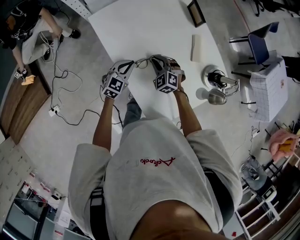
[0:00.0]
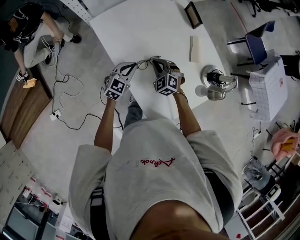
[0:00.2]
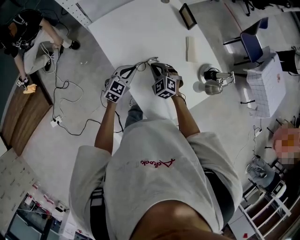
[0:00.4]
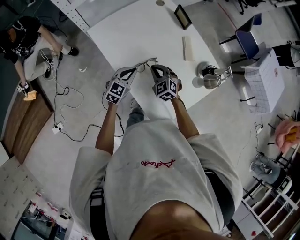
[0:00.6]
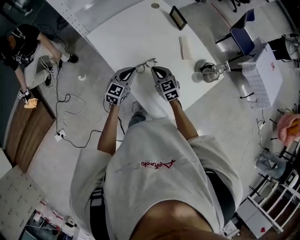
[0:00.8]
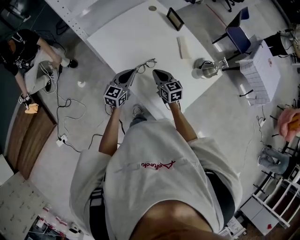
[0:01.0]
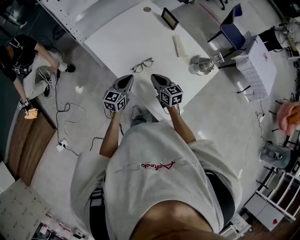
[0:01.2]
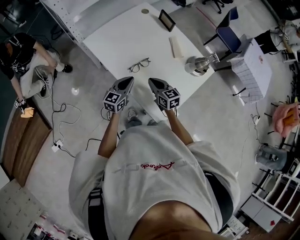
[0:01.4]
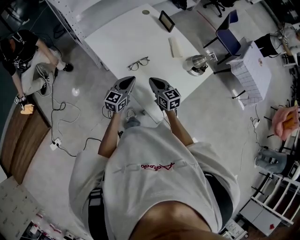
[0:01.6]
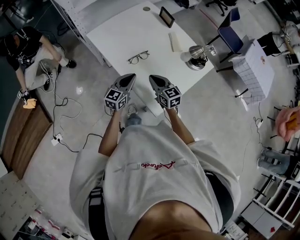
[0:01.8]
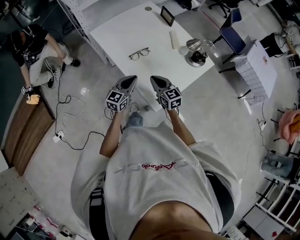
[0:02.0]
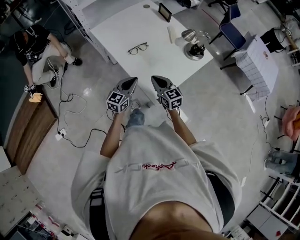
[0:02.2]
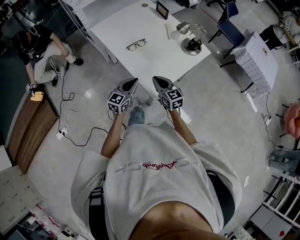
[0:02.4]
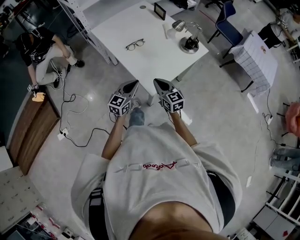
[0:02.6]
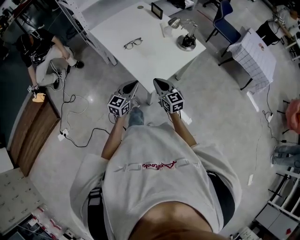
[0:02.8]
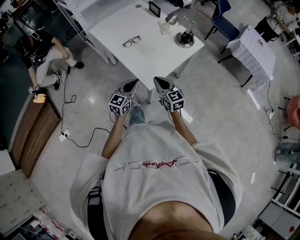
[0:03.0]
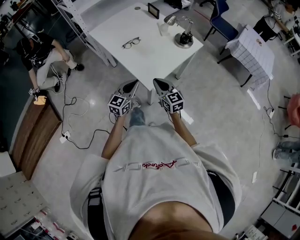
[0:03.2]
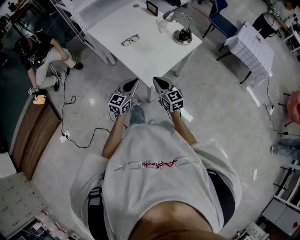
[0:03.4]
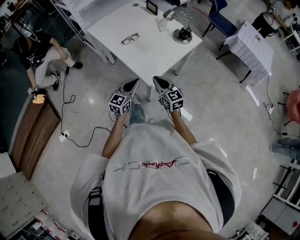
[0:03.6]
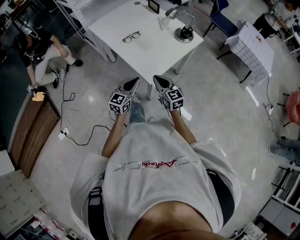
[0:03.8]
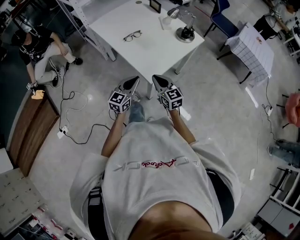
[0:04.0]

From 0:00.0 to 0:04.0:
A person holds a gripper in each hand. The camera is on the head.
From 0:00.0 to 0:01.4: Both grippers travel together backward and upward, roughly 10 cm. The right gripper rolls clockwise, seen from behind, by some 50 degrees; the left gripper changes its angle by some 30 degrees.
From 0:01.4 to 0:02.6: Both grippers move backward, some 20 cm.
From 0:02.6 to 0:04.0: The grippers both shift backward by roughly 5 cm.

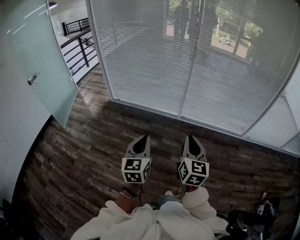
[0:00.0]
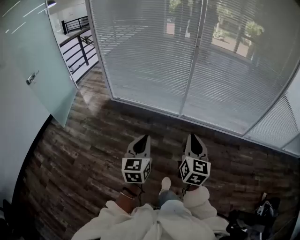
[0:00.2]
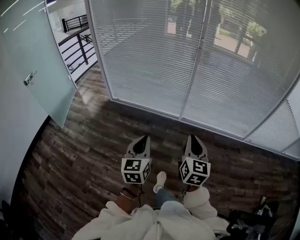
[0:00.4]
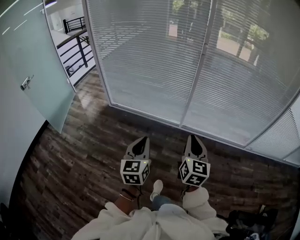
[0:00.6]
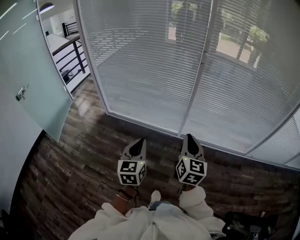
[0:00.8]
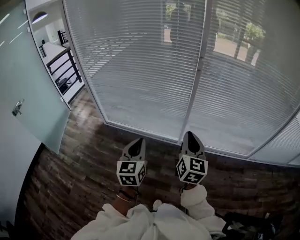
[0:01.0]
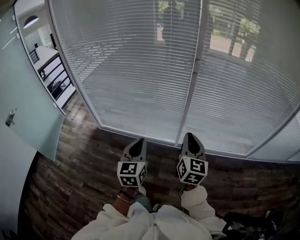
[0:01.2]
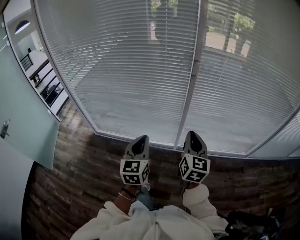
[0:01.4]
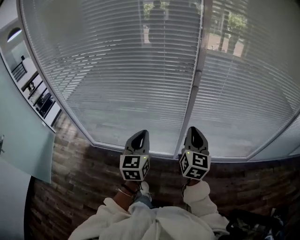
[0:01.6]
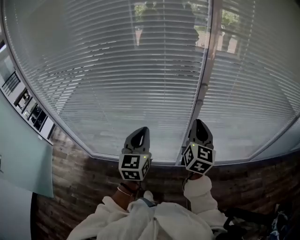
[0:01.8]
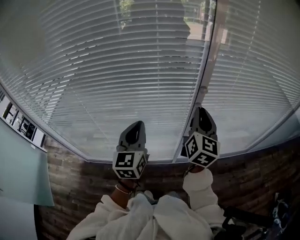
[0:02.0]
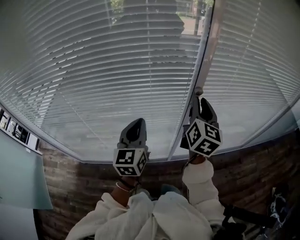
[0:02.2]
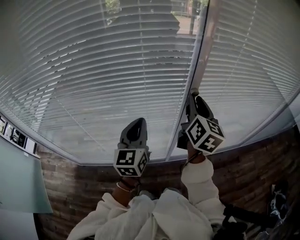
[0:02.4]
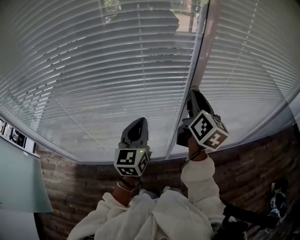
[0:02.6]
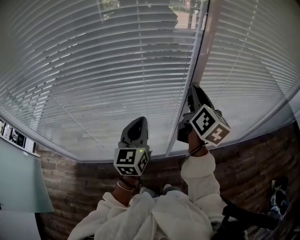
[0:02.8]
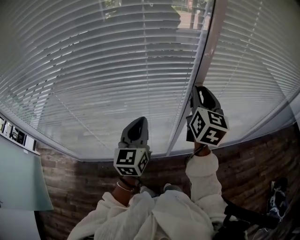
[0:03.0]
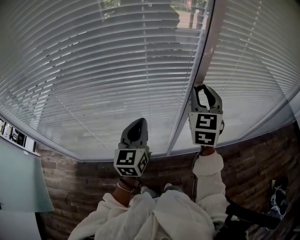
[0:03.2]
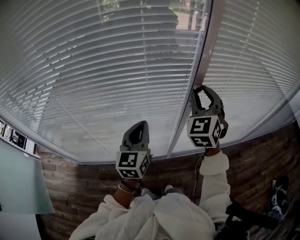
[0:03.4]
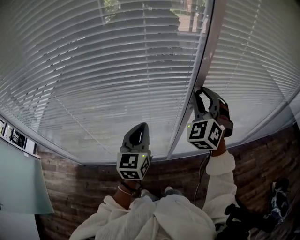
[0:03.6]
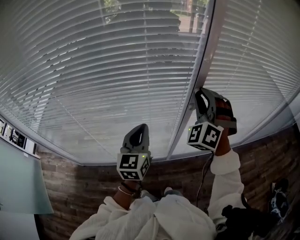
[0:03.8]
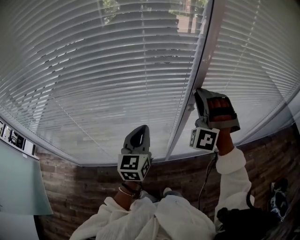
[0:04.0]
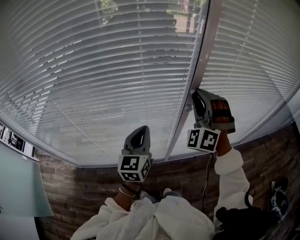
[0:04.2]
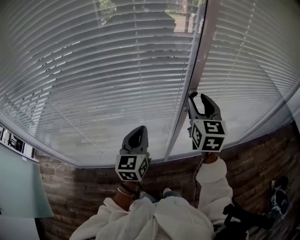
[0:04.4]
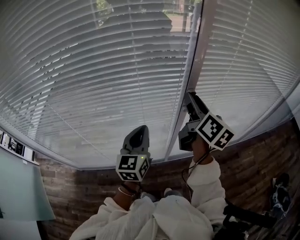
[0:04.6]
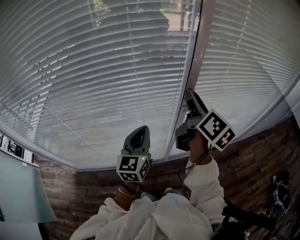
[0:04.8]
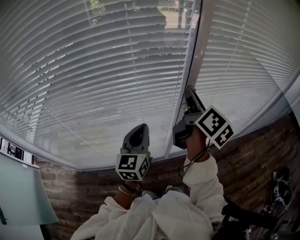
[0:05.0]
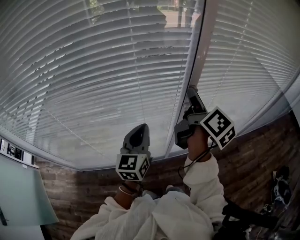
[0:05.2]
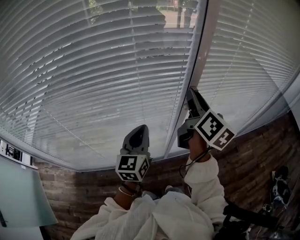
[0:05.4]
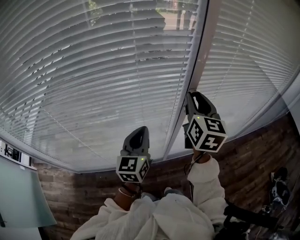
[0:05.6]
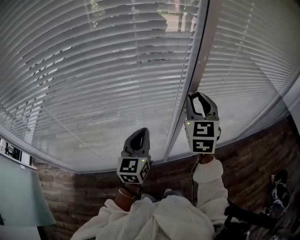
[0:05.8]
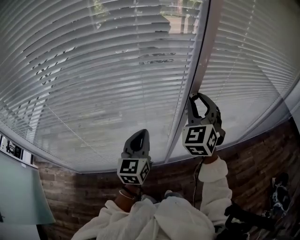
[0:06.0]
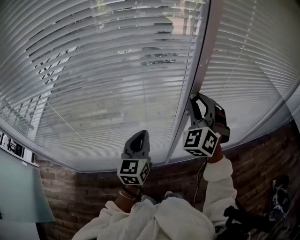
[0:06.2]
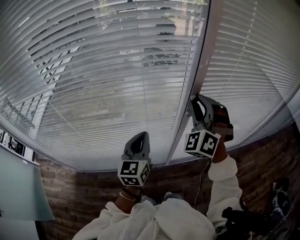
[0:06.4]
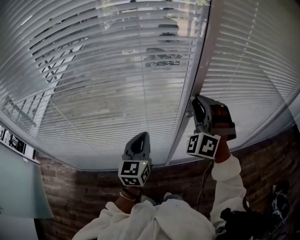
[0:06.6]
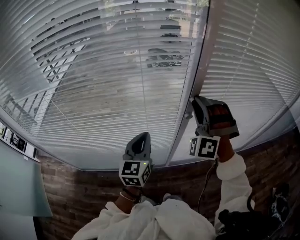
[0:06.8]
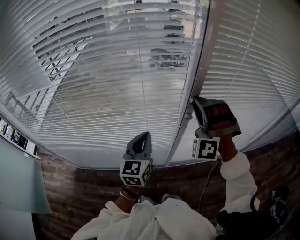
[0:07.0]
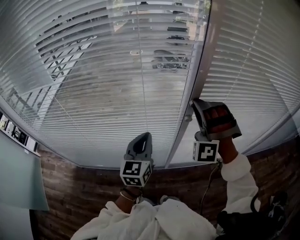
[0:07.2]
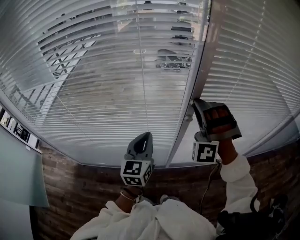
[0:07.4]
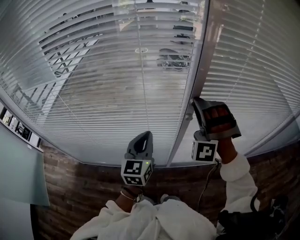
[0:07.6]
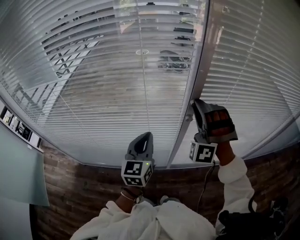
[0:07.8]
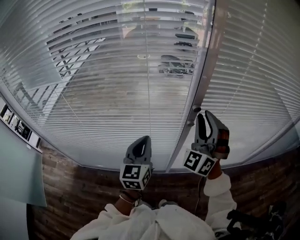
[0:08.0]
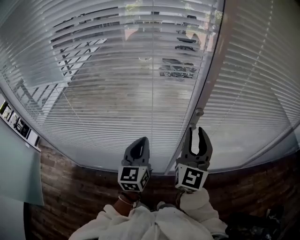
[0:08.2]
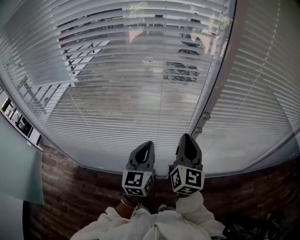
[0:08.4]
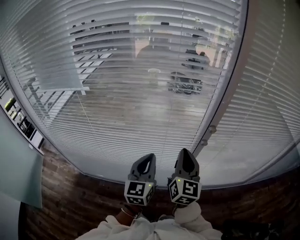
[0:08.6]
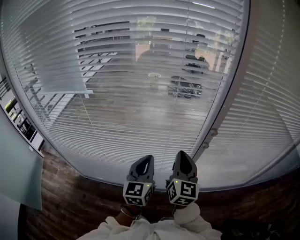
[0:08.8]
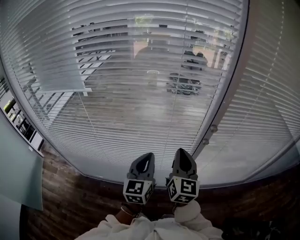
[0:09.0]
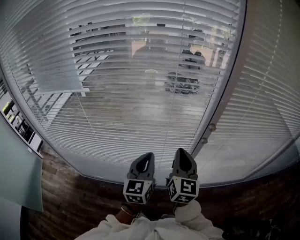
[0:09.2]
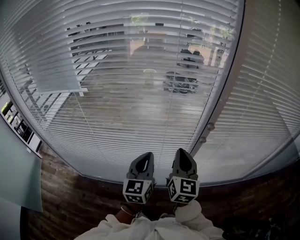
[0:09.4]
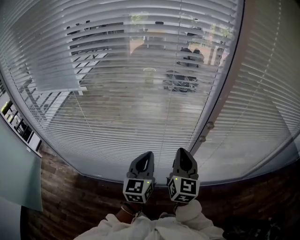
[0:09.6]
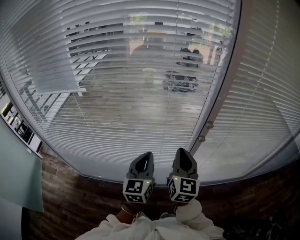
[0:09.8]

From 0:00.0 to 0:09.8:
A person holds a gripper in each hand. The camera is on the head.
From 0:00.0 to 0:01.4: Both grippers are carried forward, about 50 cm.
From 0:01.4 to 0:02.8: Both grippers move forward, approximately 35 cm. The right gripper swivels some 30 degrees, and opens up.
From 0:02.8 to 0:04.2: The right gripper twists roughly 110 degrees counterclockwise, seen from behind.
From 0:04.2 to 0:05.6: The right gripper rotates around the line of its fingers by approximately 90 degrees, clockwise from behind.
From 0:05.6 to 0:07.0: The right gripper twists approximately 110 degrees counterclockwise, seen from behind.
From 0:07.0 to 0:08.4: The right gripper heads backward and to the left, covering roughly 10 cm, rolls clockwise, seen from behind, by some 110 degrees, and closes up.
From 0:08.4 to 0:09.8: The right gripper travels downward by approximately 5 cm, while the left gripper ends up some 5 cm from where it was.

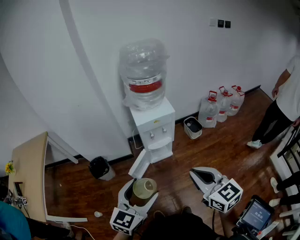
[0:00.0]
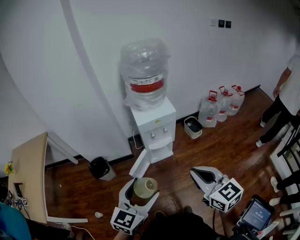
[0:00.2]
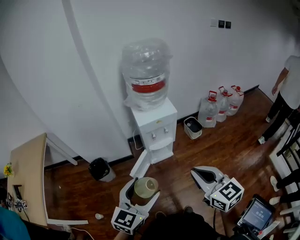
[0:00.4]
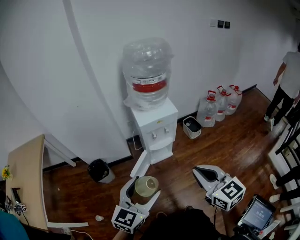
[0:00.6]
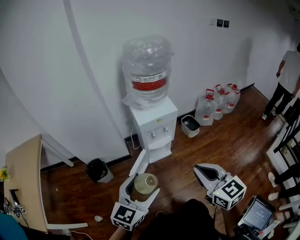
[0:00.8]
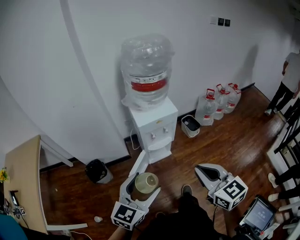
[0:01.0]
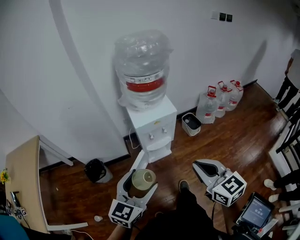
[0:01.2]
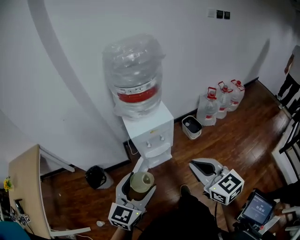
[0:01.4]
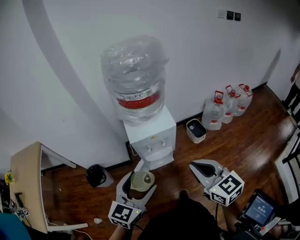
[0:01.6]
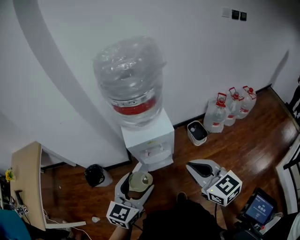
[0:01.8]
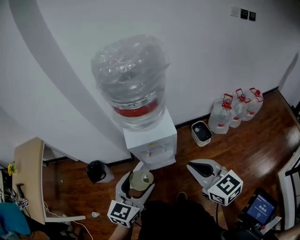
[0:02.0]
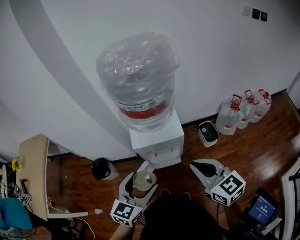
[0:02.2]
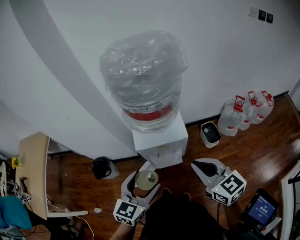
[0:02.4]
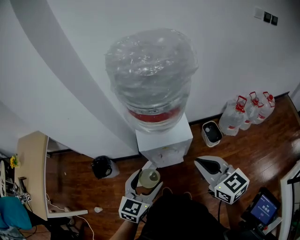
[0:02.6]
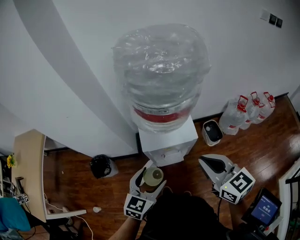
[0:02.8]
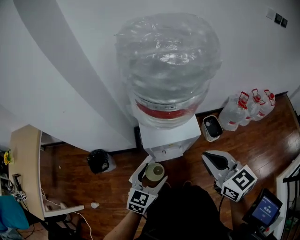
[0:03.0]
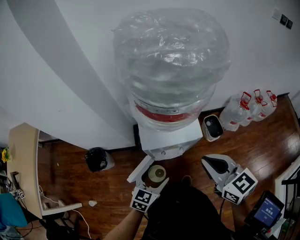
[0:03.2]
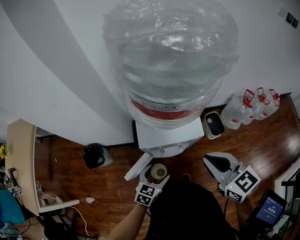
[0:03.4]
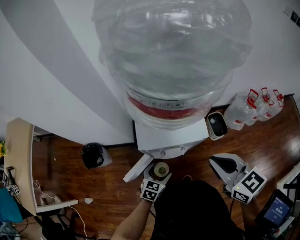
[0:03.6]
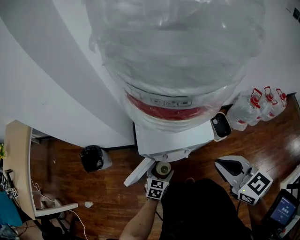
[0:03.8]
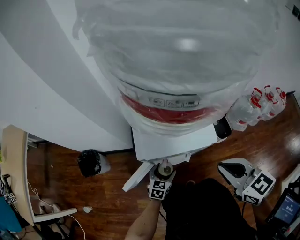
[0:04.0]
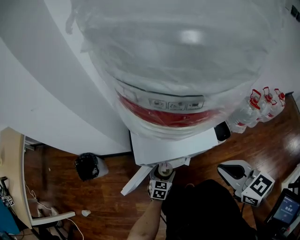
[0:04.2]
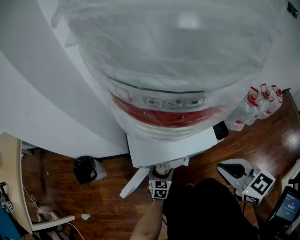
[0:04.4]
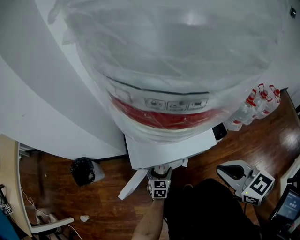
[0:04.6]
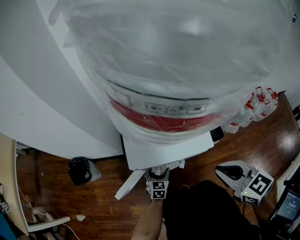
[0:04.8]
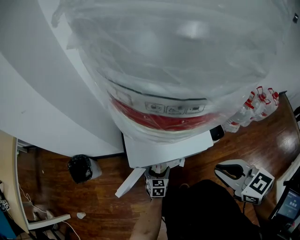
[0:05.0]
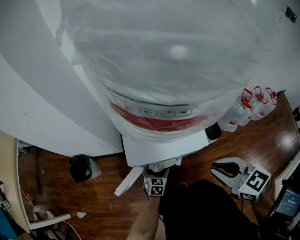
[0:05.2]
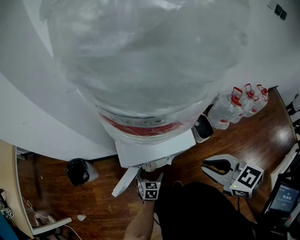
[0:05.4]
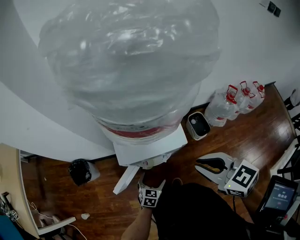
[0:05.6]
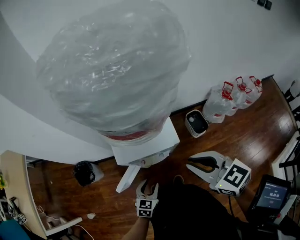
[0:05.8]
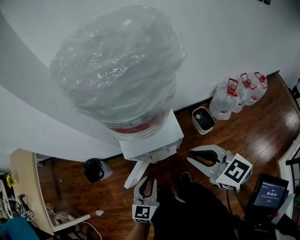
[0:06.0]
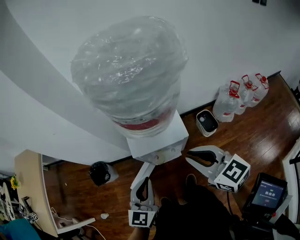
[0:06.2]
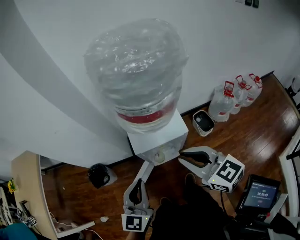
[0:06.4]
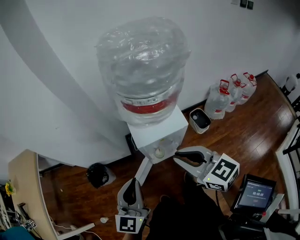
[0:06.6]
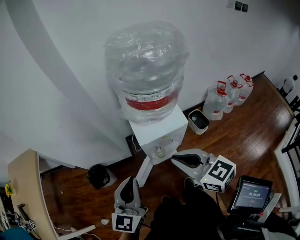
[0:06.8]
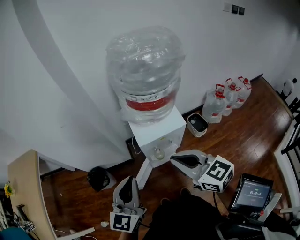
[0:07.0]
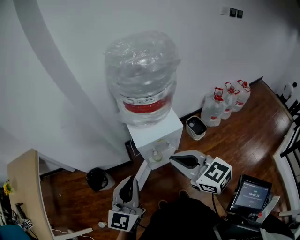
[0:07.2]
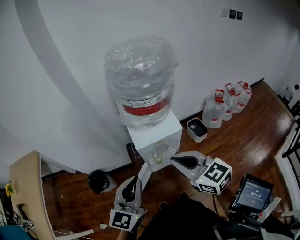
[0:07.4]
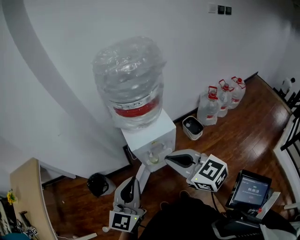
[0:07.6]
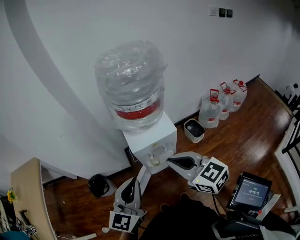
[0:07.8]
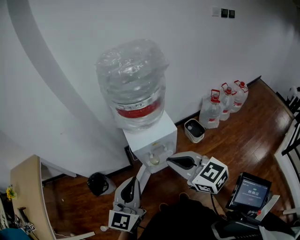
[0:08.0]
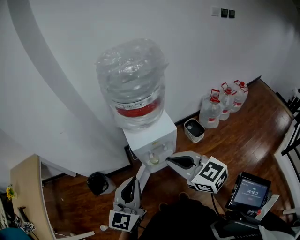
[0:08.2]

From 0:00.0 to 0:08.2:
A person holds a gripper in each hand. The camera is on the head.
From 0:00.0 to 0:01.6: Both grippers move forward, about 20 cm.
From 0:01.6 to 0:03.2: The left gripper shifts about 25 cm downward and forward, while the right gripper heads forward, covering some 20 cm.
From 0:03.2 to 0:05.0: The left gripper shifts roughly 35 cm downward. The right gripper shifts some 15 cm downward.
From 0:05.0 to 0:06.6: The left gripper moves upward, roughly 50 cm, tilts its fingers roughly 30 degrees upward, and closes its fingers. Meanwhile the right gripper is displaced upward and to the left by some 25 cm.
From 0:06.6 to 0:08.2: The right gripper travels backward by about 5 cm. The left gripper goes approximately 10 cm backward and upward.

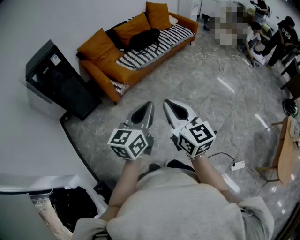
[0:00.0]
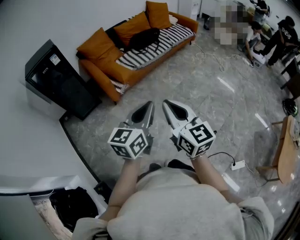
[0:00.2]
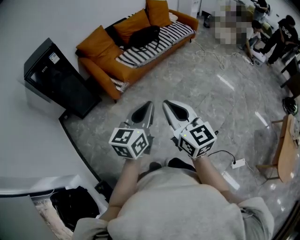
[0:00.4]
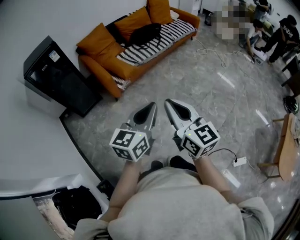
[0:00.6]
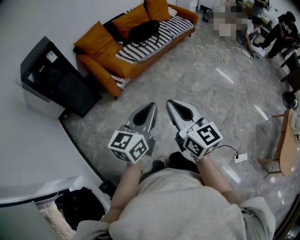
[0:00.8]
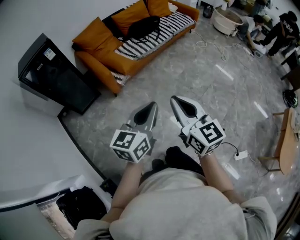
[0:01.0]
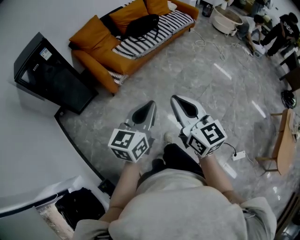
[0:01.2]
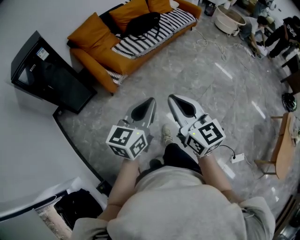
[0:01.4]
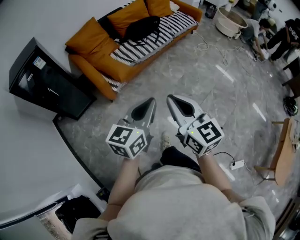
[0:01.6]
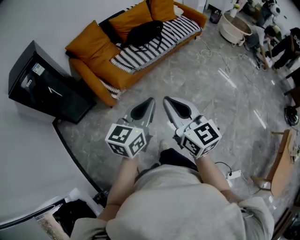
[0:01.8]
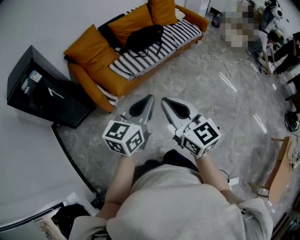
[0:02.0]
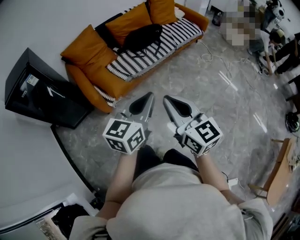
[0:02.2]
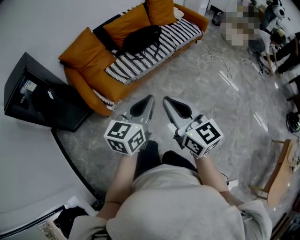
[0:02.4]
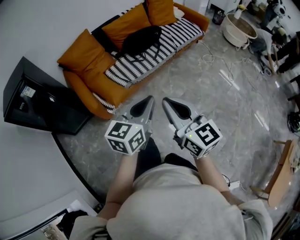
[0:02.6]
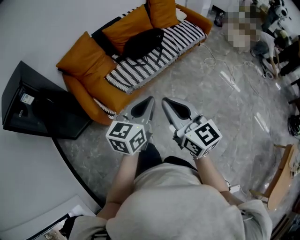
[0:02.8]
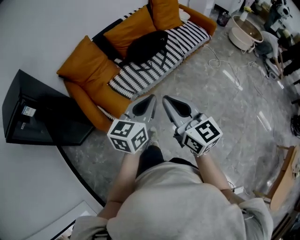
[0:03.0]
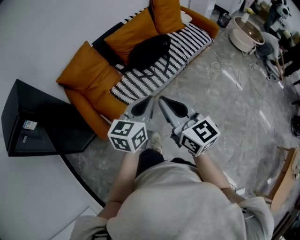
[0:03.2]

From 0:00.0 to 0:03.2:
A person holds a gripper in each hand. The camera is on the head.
From 0:00.0 to 0:01.6: Both grippers travel together forward, about 20 cm.
From 0:01.6 to 0:03.2: Both grippers are carried forward, roughly 50 cm.
